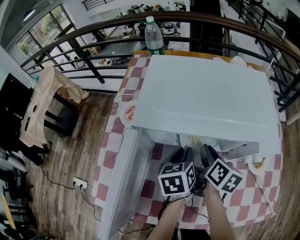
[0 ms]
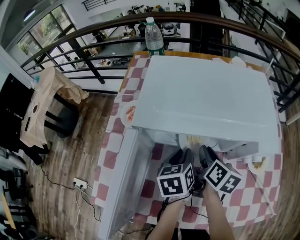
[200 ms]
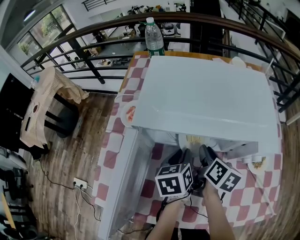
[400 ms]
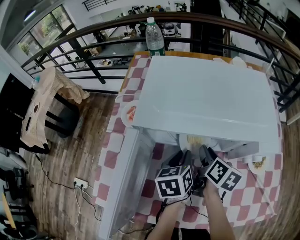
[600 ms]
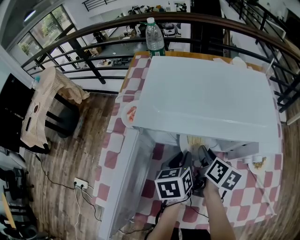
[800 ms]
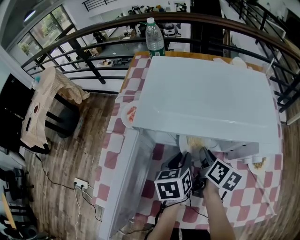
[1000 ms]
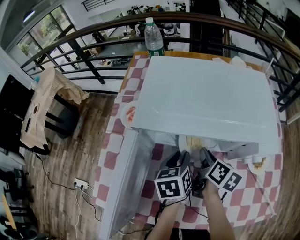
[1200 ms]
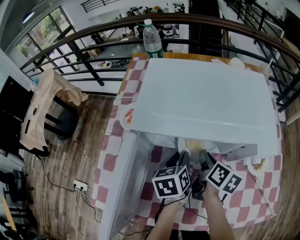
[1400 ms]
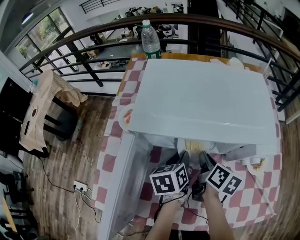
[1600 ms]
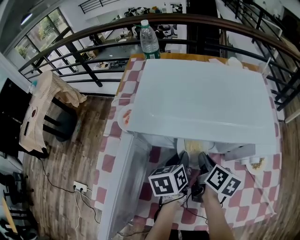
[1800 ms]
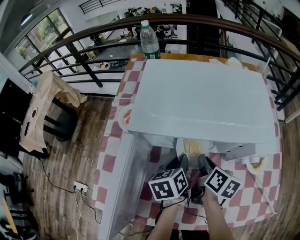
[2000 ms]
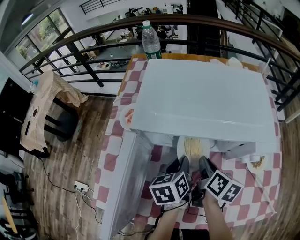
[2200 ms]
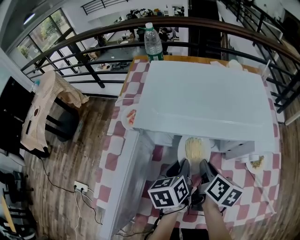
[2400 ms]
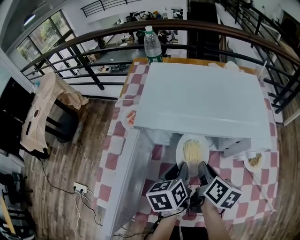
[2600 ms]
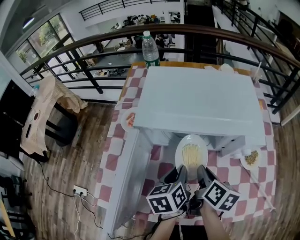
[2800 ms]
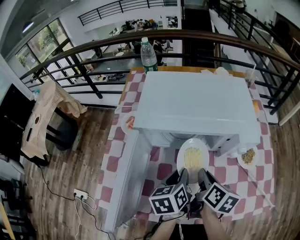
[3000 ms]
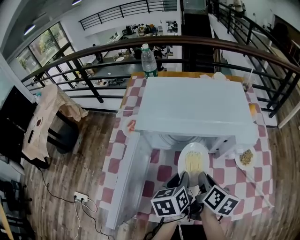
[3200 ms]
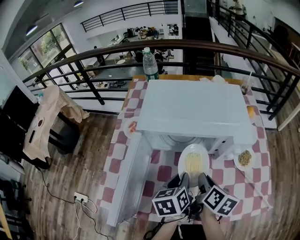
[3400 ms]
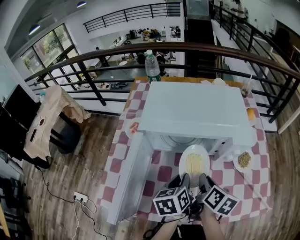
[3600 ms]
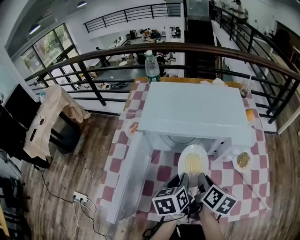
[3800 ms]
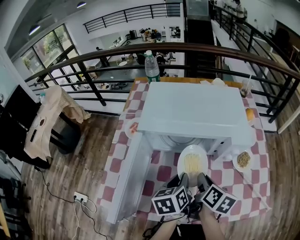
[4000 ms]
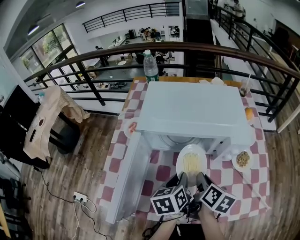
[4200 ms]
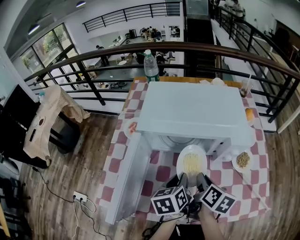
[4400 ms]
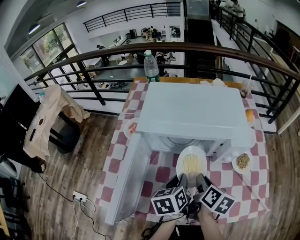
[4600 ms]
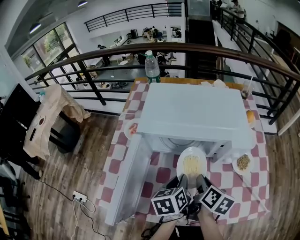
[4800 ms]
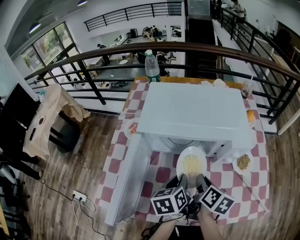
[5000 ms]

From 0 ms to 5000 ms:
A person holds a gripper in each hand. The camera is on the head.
From 0 ms to 1600 ms: The grippers move only a little.
From 1600 ms to 3400 ms: The two grippers go roughly 15 cm backward and upward.
From 3400 ms to 5000 ms: Both grippers stay about where they are.

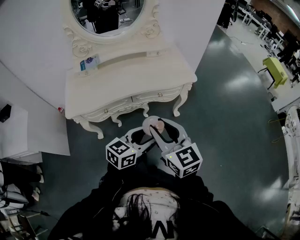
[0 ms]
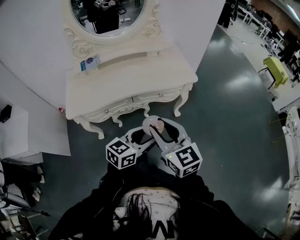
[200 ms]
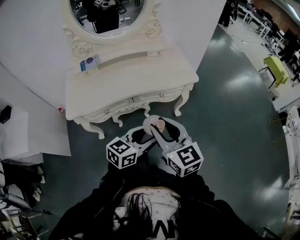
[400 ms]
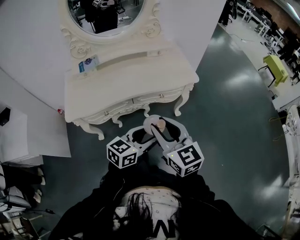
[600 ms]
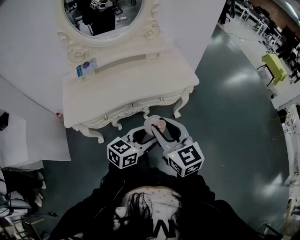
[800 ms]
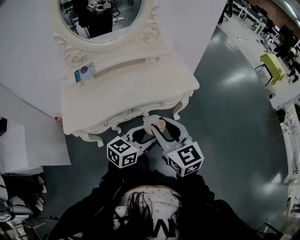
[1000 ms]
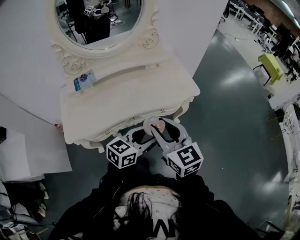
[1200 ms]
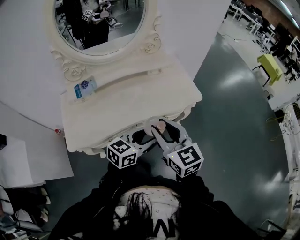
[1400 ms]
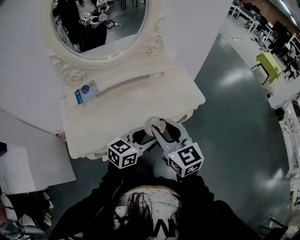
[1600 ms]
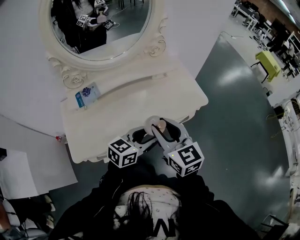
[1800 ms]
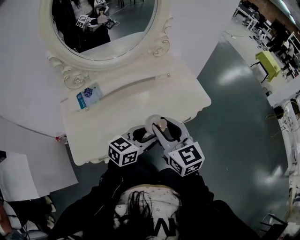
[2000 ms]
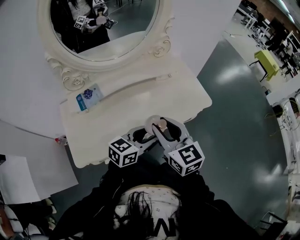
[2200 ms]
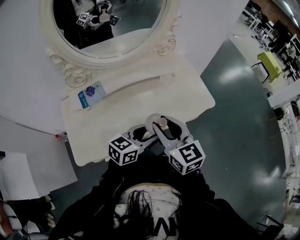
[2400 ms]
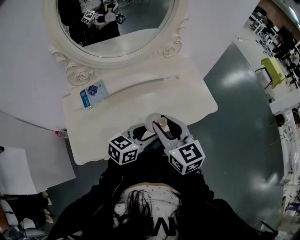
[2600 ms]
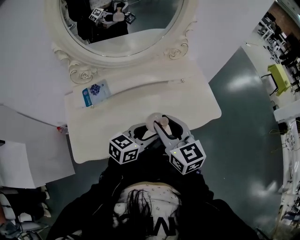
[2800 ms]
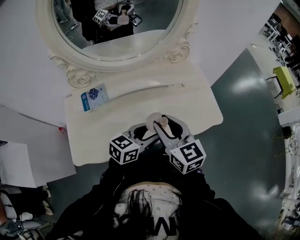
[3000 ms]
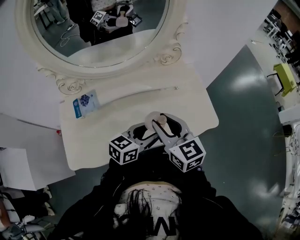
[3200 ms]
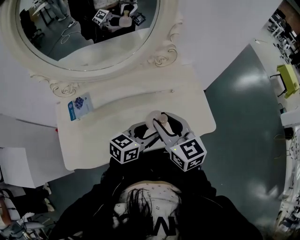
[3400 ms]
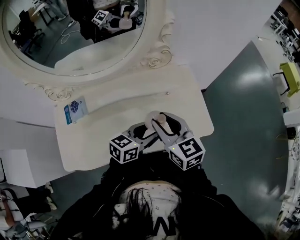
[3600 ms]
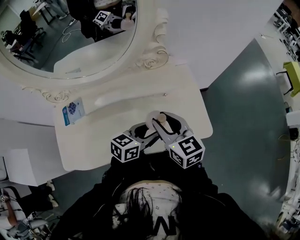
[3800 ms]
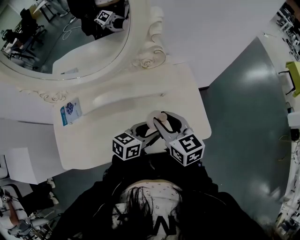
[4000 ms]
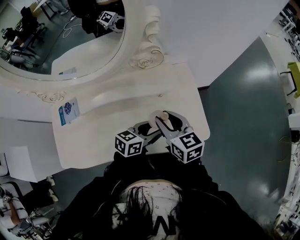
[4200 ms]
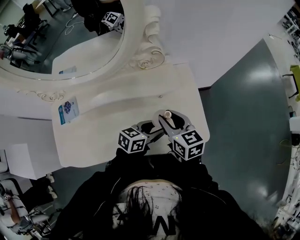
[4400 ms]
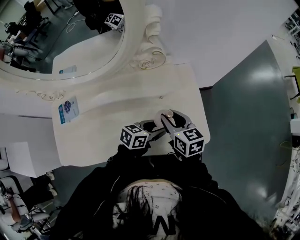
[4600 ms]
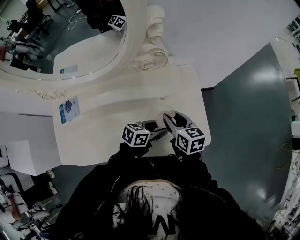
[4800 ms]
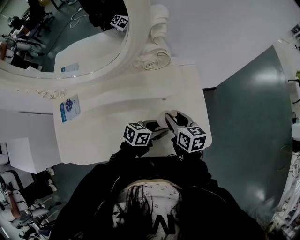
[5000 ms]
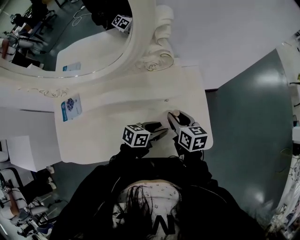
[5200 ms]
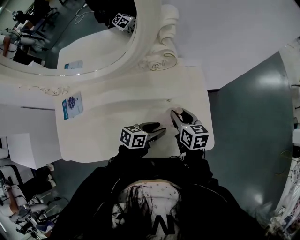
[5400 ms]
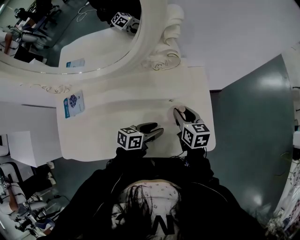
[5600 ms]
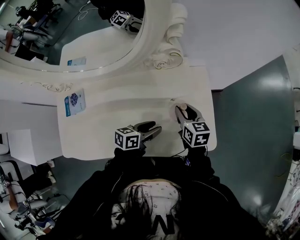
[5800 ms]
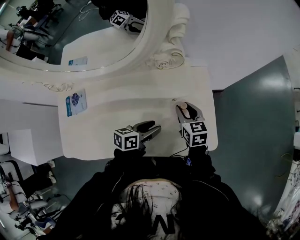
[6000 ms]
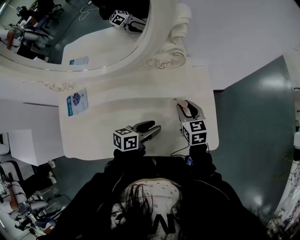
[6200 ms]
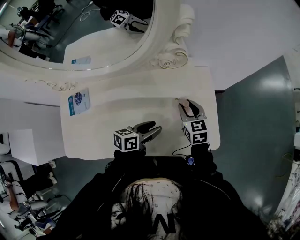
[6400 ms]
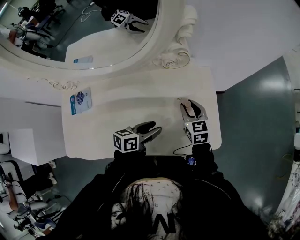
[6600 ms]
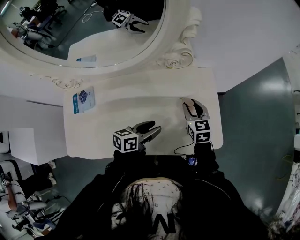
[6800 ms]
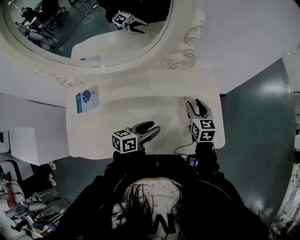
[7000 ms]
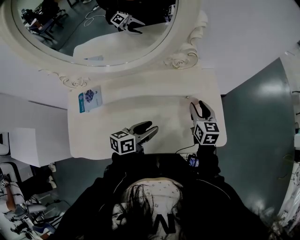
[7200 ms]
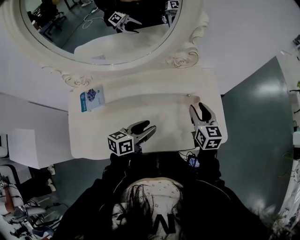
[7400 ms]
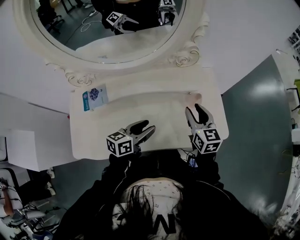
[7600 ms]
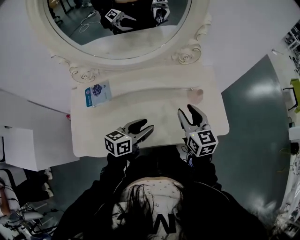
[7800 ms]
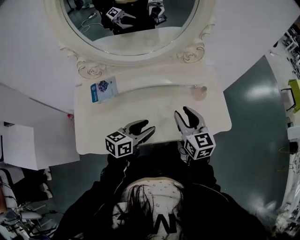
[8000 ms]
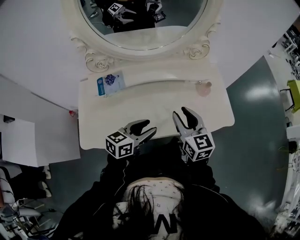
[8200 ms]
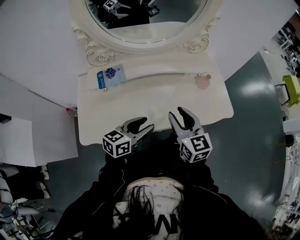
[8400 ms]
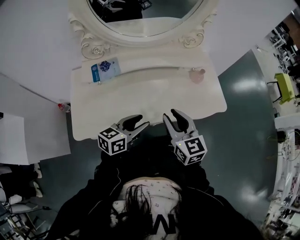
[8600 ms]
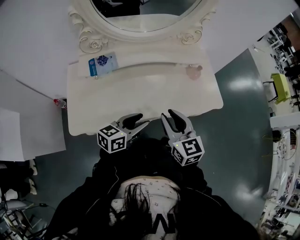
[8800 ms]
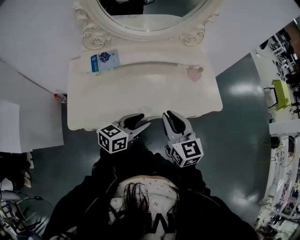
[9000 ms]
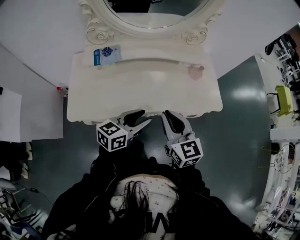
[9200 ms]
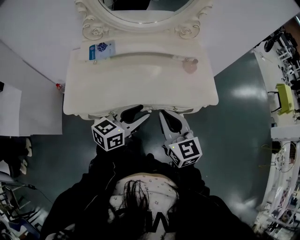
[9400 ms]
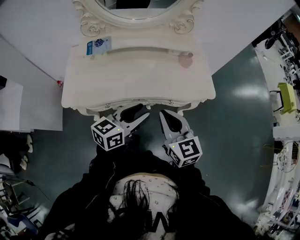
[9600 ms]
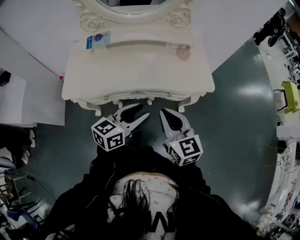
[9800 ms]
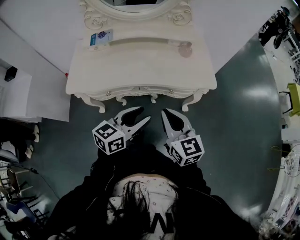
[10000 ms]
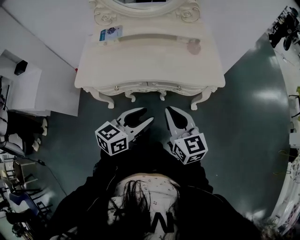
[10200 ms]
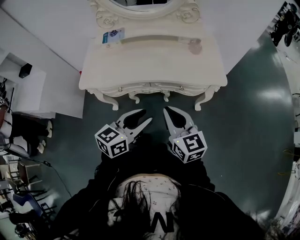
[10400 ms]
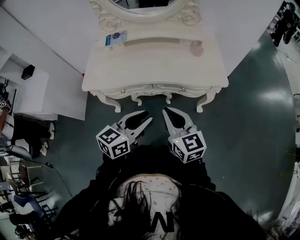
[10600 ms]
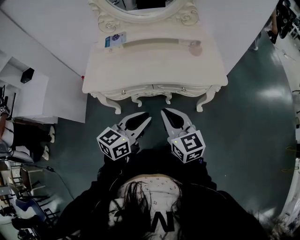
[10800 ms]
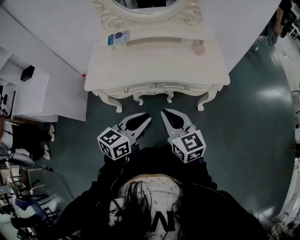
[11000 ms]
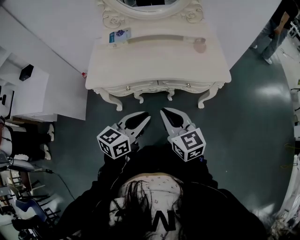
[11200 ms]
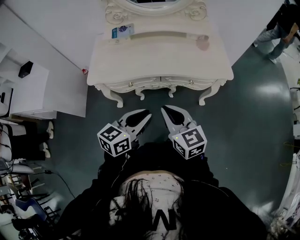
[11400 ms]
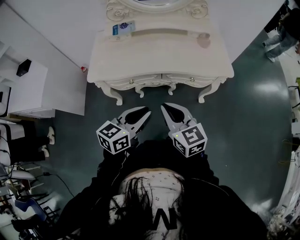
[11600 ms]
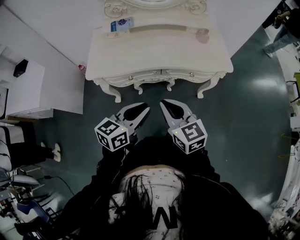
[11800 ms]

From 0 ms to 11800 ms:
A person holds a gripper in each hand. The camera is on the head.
From 0 ms to 1400 ms: The grippers both shift forward and to the left by approximately 15 cm.
From 1400 ms to 3000 ms: Both grippers travel together forward and to the left, some 15 cm.
From 3000 ms to 4400 ms: The left gripper is displaced to the right, forward and downward by about 25 cm. The right gripper shifts roughly 25 cm forward, to the right and downward.
From 4400 ms to 6000 ms: The left gripper shifts approximately 5 cm to the left, and swivels some 20 degrees; the right gripper travels downward and forward by some 10 cm.
From 6000 ms to 7400 ms: The right gripper moves upward, approximately 5 cm, while the left gripper travels to the left, upward and backward by about 10 cm.
From 7400 ms to 8800 ms: The right gripper is displaced backward and to the left by some 30 cm. The left gripper heads backward, covering roughly 15 cm.
From 8800 ms to 10400 ms: Both grippers move backward and to the right, about 20 cm. The right gripper closes.
From 10400 ms to 11800 ms: The grippers both shift to the left by about 10 cm. The left gripper closes up.

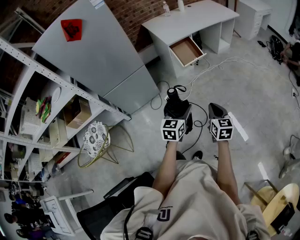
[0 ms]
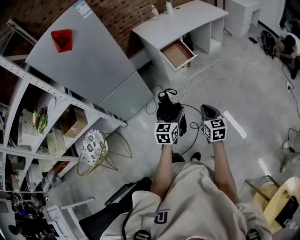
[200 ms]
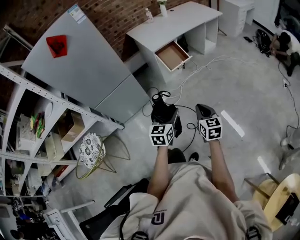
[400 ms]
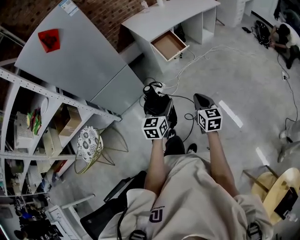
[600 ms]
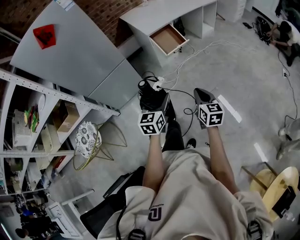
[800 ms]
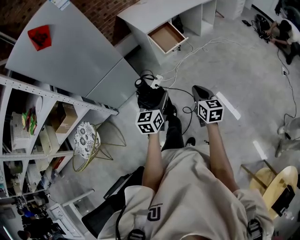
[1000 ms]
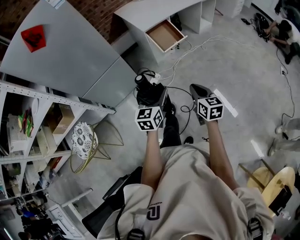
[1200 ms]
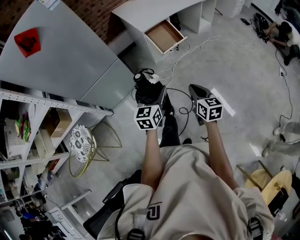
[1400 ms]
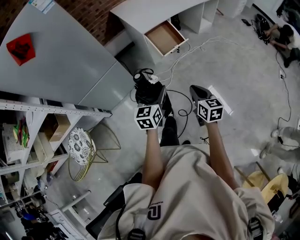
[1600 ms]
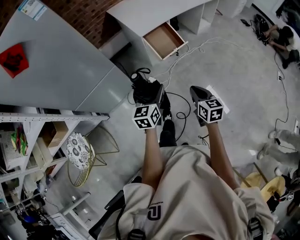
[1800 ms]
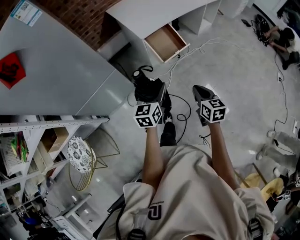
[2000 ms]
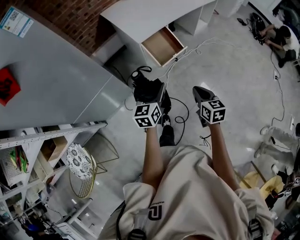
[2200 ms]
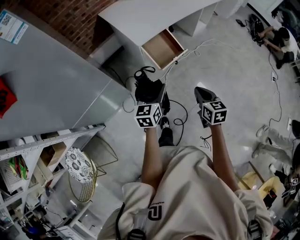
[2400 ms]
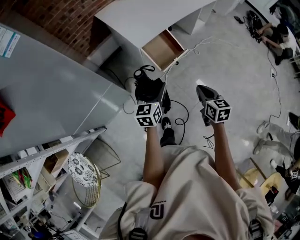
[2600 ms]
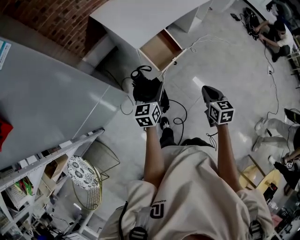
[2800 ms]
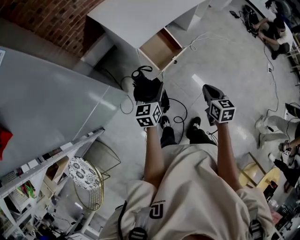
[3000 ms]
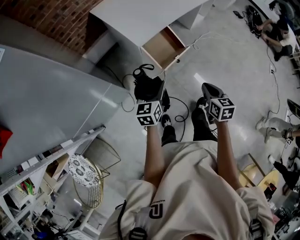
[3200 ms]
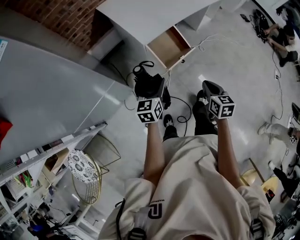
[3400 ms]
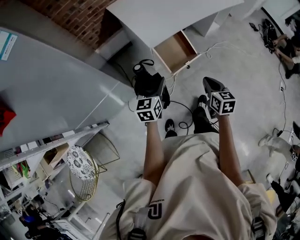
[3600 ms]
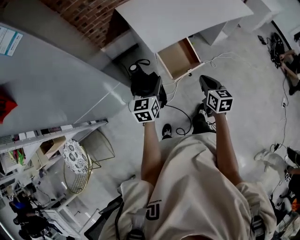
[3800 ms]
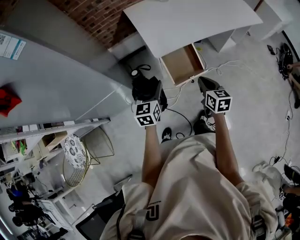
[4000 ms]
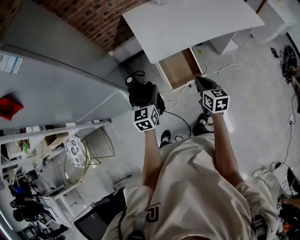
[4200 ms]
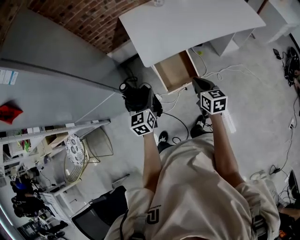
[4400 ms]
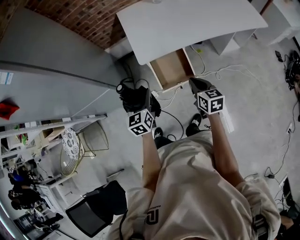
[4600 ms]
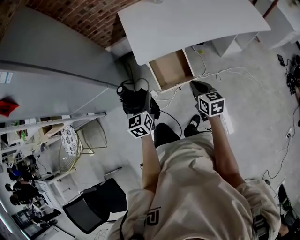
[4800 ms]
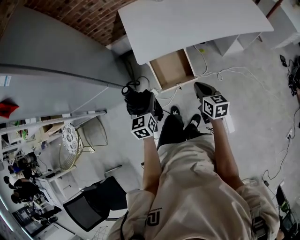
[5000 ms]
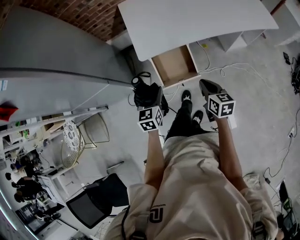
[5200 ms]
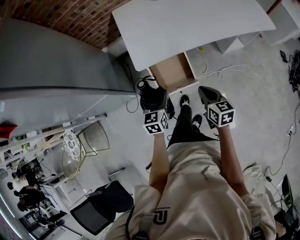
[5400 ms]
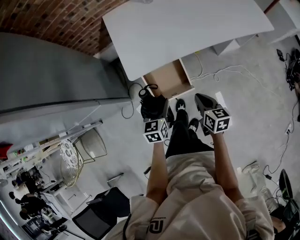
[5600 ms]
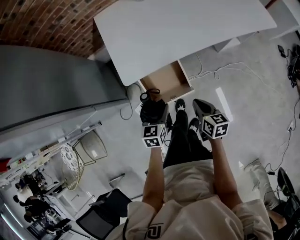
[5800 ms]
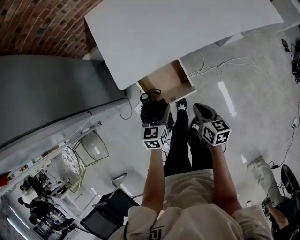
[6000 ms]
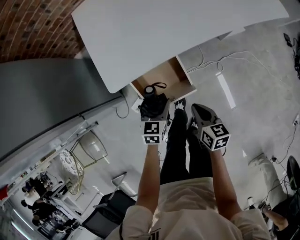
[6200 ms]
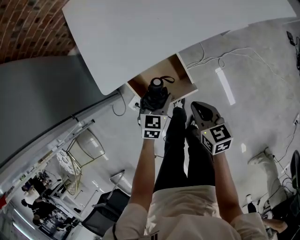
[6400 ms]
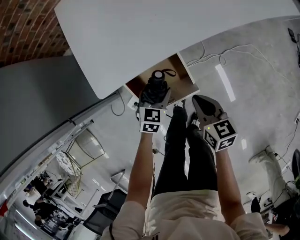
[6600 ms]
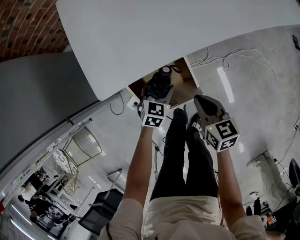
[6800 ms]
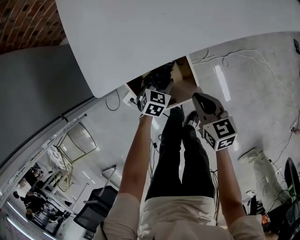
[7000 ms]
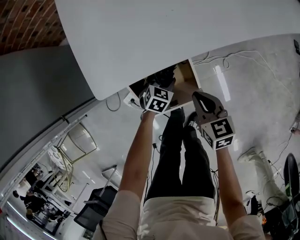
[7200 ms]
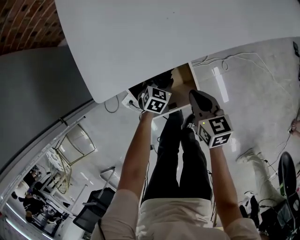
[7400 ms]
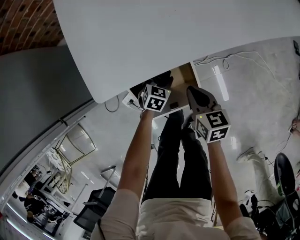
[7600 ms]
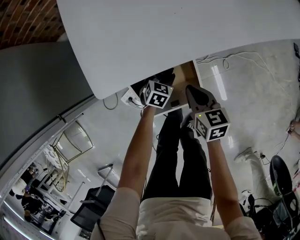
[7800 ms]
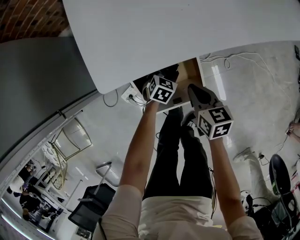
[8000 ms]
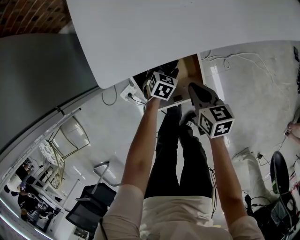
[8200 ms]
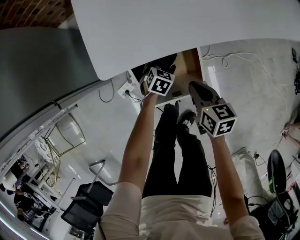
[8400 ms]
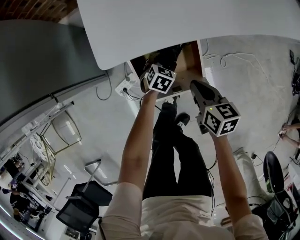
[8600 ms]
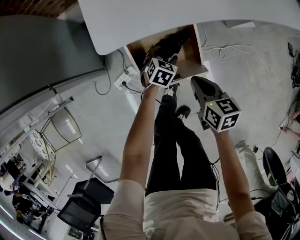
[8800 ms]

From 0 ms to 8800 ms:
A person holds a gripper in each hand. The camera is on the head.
From 0 ms to 1400 ms: The grippers both shift forward by some 10 cm.
From 1400 ms to 3000 ms: Both grippers travel together forward, roughly 30 cm.
From 3000 ms to 4400 ms: The right gripper moves roughly 25 cm, and rotates approximately 30 degrees, while the left gripper changes place by about 10 cm, and turns by some 40 degrees.
From 4400 ms to 5800 ms: The right gripper heads downward and to the right, covering about 15 cm, while the left gripper goes some 20 cm to the right and downward, and rotates approximately 20 degrees.
From 5800 ms to 7400 ms: The right gripper moves downward and forward, approximately 20 cm. The left gripper shifts some 35 cm downward and forward, and swivels about 30 degrees.
From 7400 ms to 8800 ms: The right gripper is displaced backward by about 5 cm.
